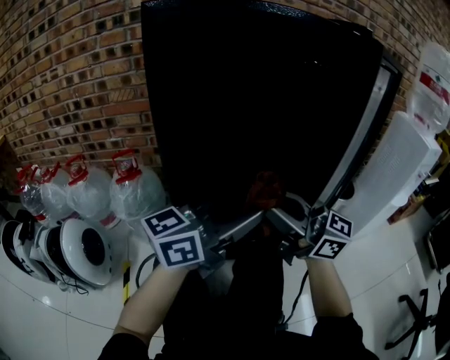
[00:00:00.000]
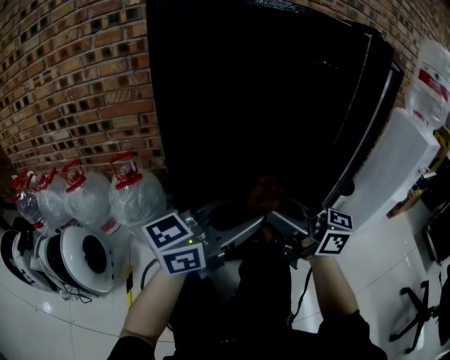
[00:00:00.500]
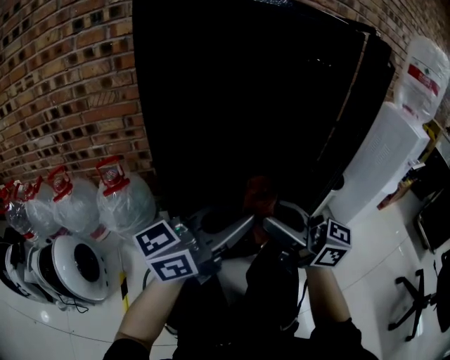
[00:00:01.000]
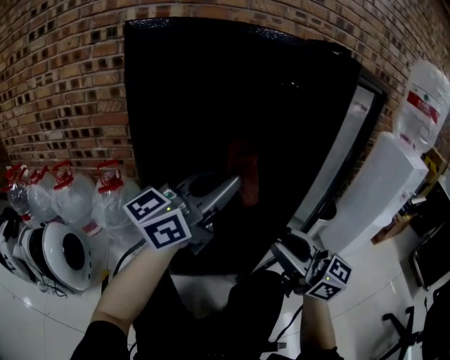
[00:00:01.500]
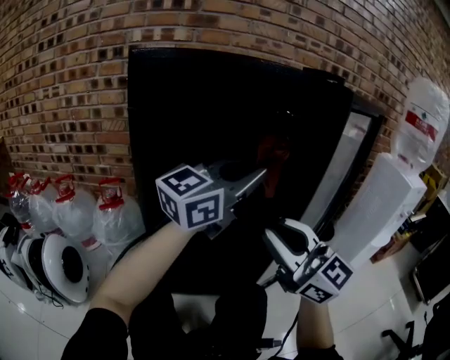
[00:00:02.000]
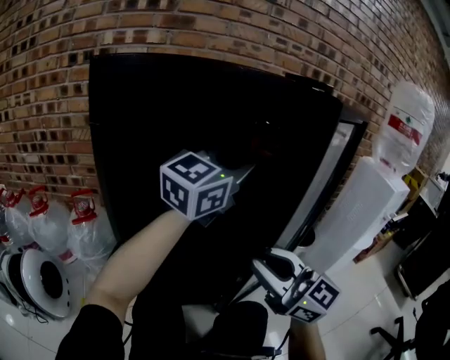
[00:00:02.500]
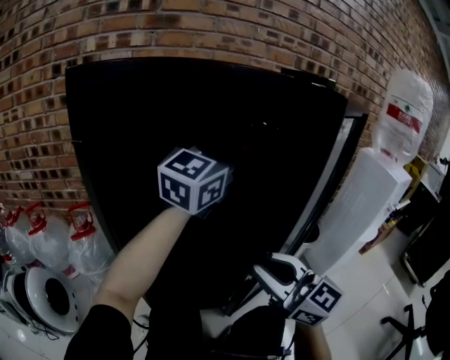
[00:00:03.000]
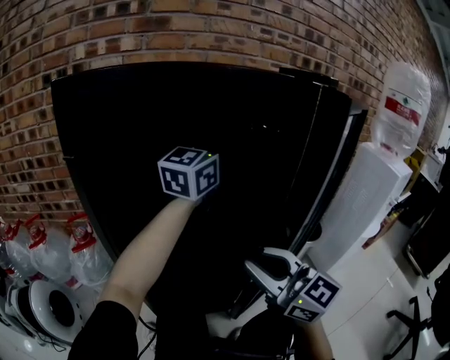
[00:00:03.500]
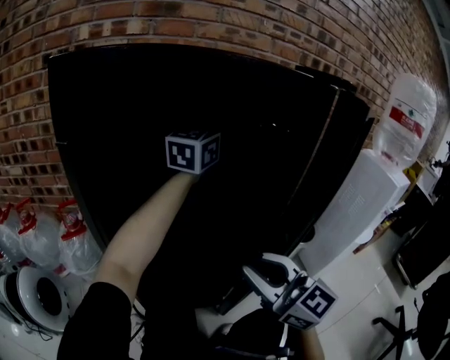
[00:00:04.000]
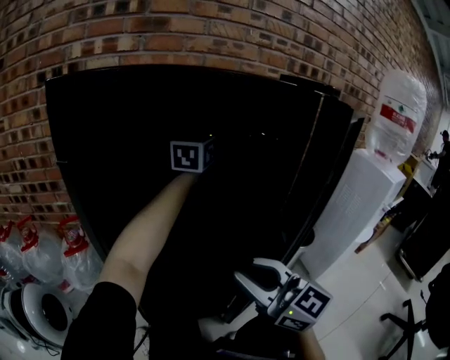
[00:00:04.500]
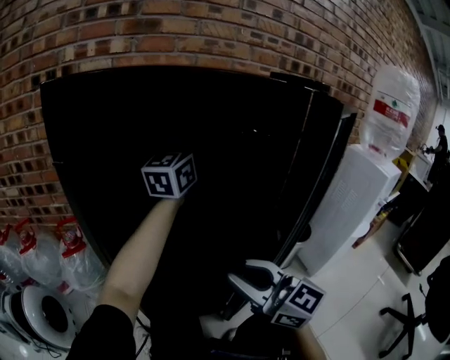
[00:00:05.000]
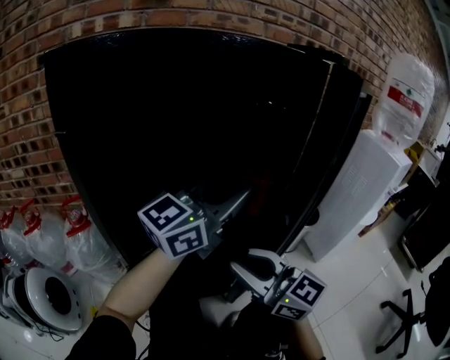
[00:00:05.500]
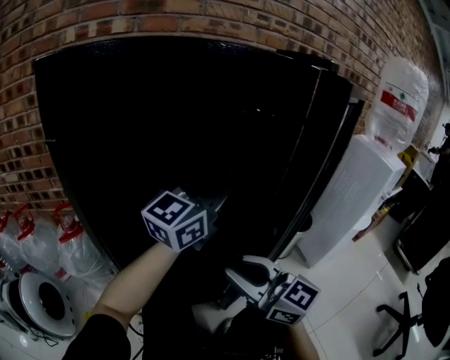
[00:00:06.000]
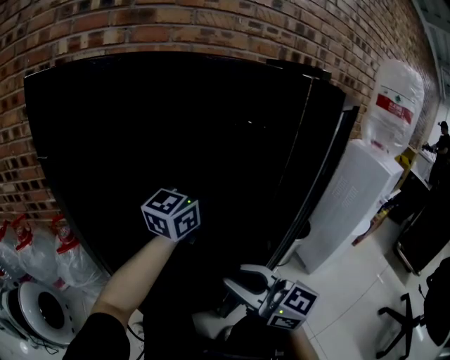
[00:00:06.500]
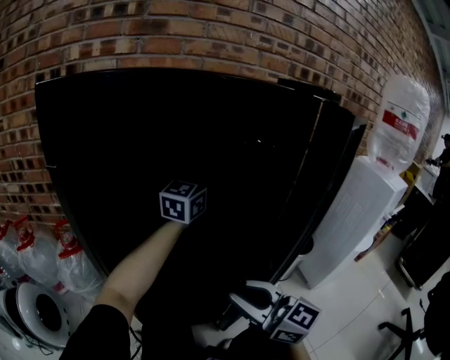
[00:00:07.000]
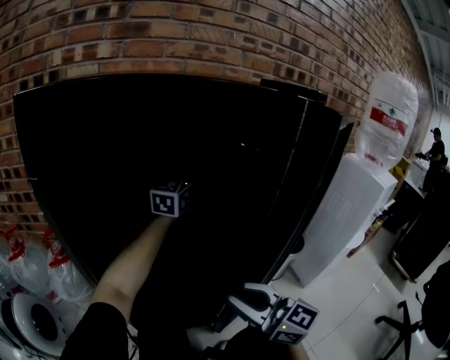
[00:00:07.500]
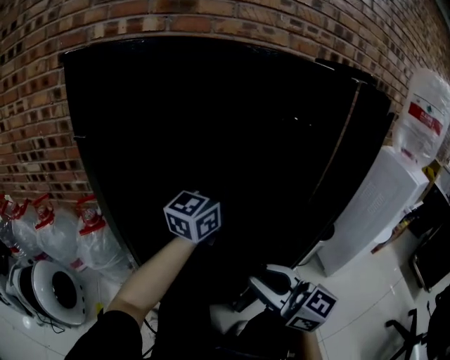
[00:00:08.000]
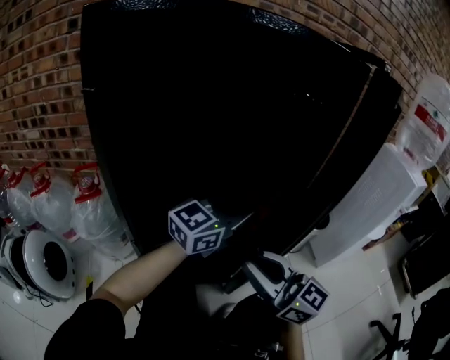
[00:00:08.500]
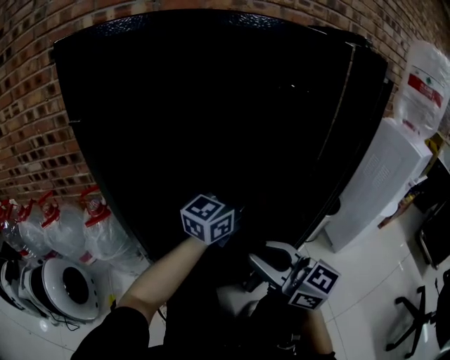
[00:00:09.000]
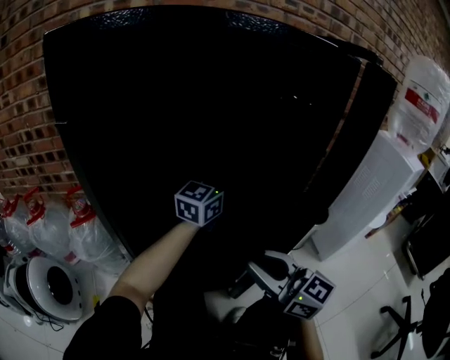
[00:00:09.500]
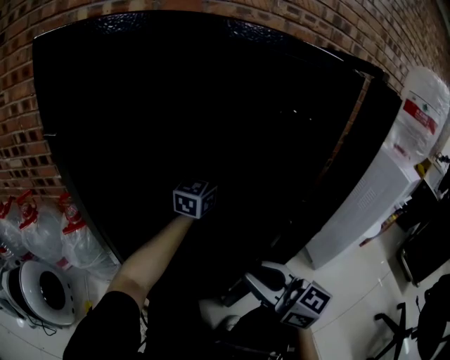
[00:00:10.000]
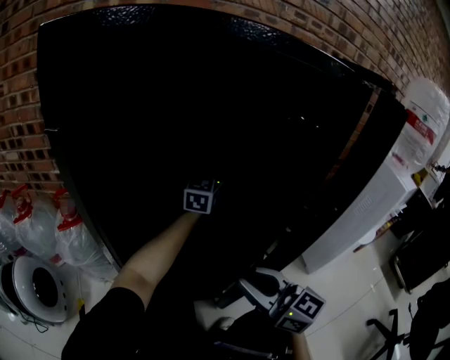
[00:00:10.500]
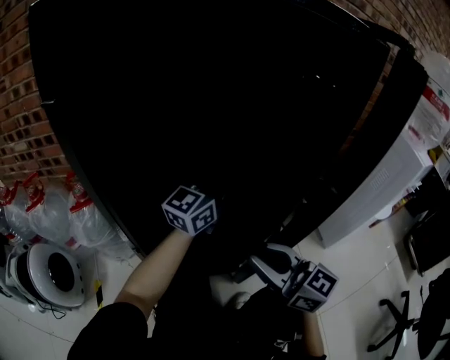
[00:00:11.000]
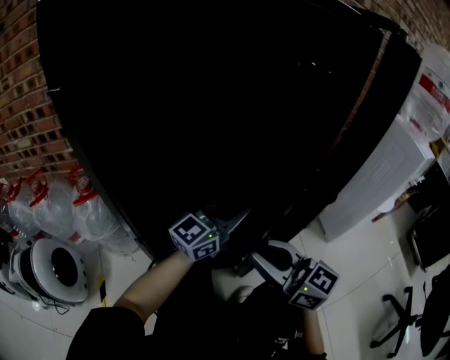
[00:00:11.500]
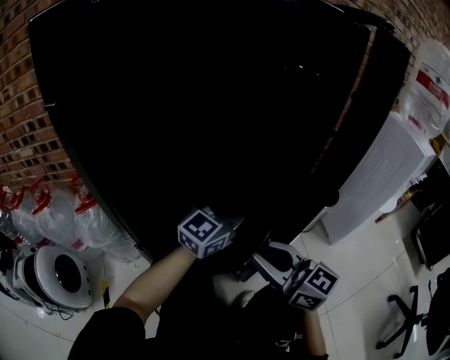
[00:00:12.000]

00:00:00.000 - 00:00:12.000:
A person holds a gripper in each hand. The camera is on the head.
00:00:00.000 - 00:00:02.000: The left gripper travels upward by roughly 15 cm, and changes its angle by about 20 degrees, while the right gripper shifts by some 10 cm, and changes its angle by roughly 30 degrees.
00:00:02.000 - 00:00:04.000: The left gripper heads forward, covering approximately 25 cm. Meanwhile the right gripper moves downward and forward, about 5 cm.
00:00:04.000 - 00:00:06.000: The left gripper moves forward and backward over about 25 cm, changing direction 2 times.
00:00:06.000 - 00:00:08.000: The left gripper moves roughly 20 cm forward and comes back.
00:00:08.000 - 00:00:10.000: The left gripper travels forward and downward by some 15 cm.
00:00:10.000 - 00:00:12.000: The left gripper moves backward, approximately 20 cm, and rotates some 20 degrees.

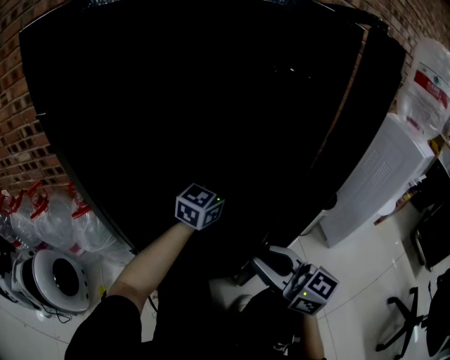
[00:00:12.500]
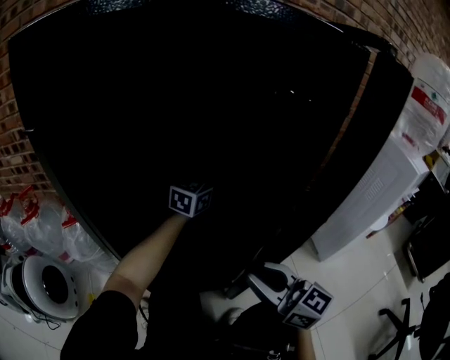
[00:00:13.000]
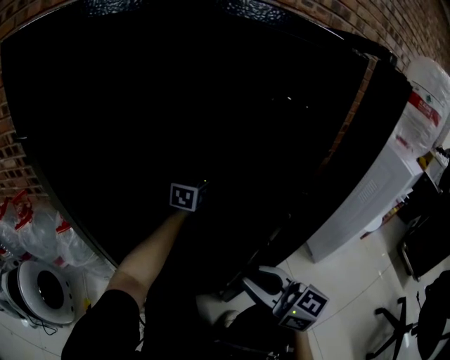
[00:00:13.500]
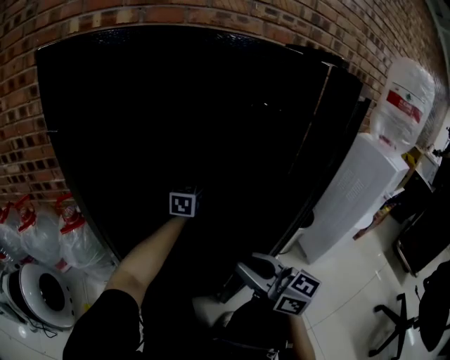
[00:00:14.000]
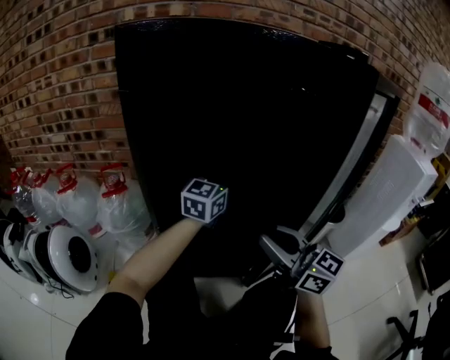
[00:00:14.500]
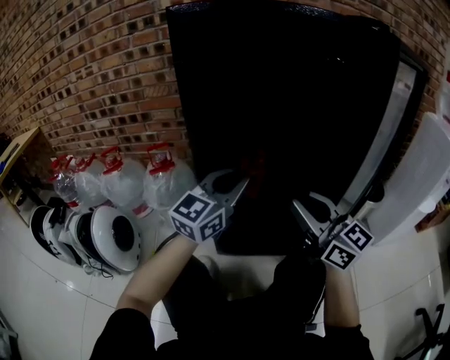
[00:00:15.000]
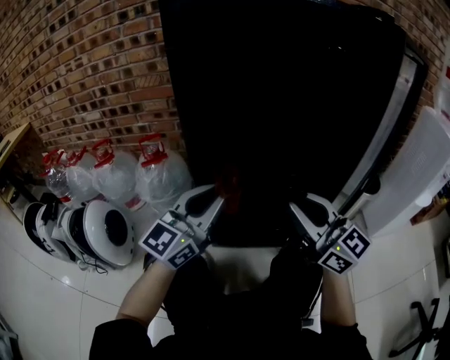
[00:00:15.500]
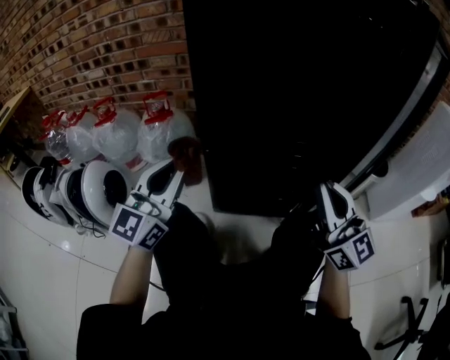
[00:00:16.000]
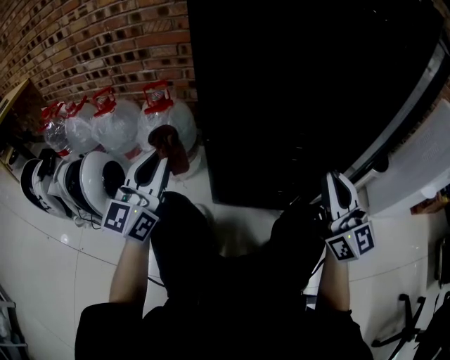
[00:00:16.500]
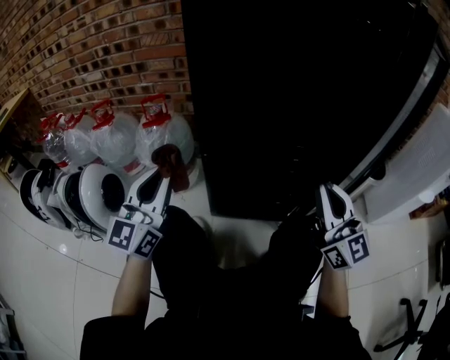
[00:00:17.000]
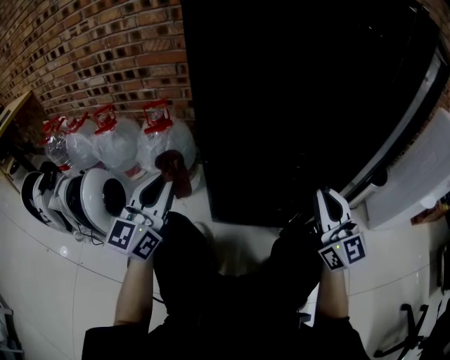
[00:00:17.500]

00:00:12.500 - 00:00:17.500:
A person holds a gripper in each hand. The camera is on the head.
00:00:12.500 - 00:00:15.000: The left gripper is displaced to the left and backward by about 25 cm, while the right gripper travels to the left and upward by some 10 cm.
00:00:15.000 - 00:00:17.500: The right gripper shifts about 10 cm downward and to the right. Meanwhile the left gripper is displaced to the left by about 20 cm, and swivels some 20 degrees.

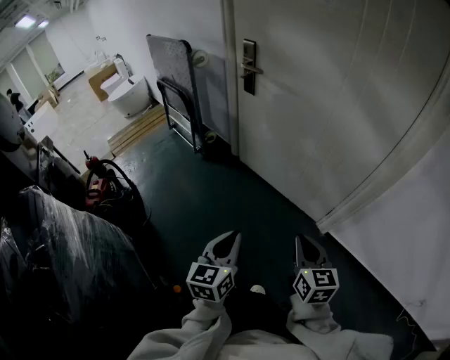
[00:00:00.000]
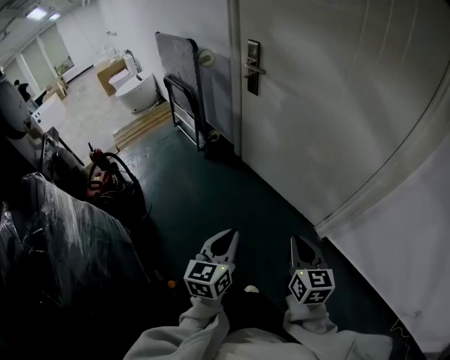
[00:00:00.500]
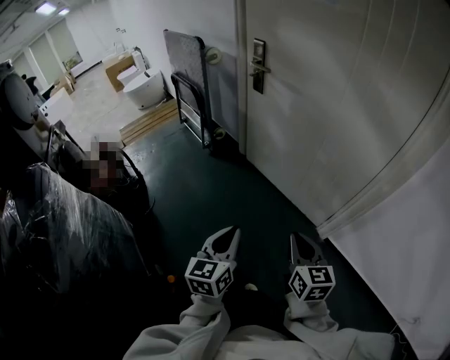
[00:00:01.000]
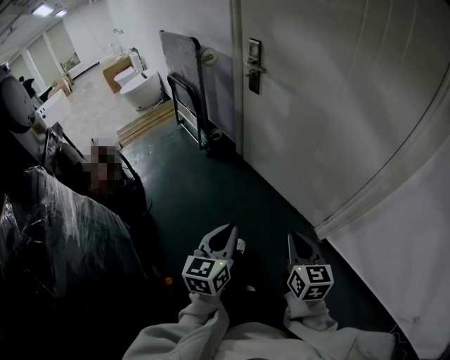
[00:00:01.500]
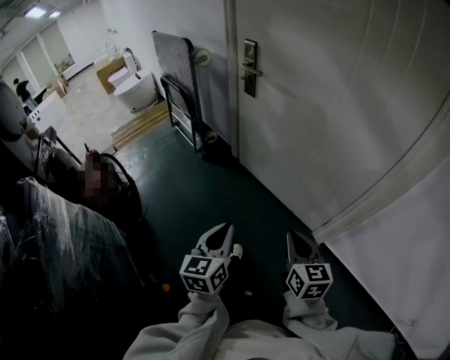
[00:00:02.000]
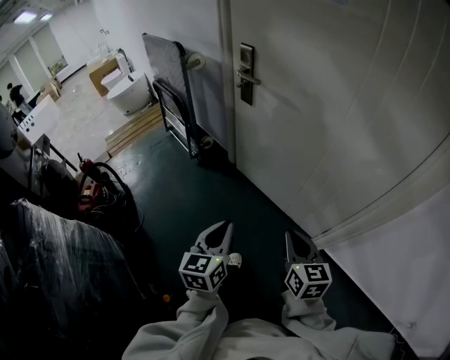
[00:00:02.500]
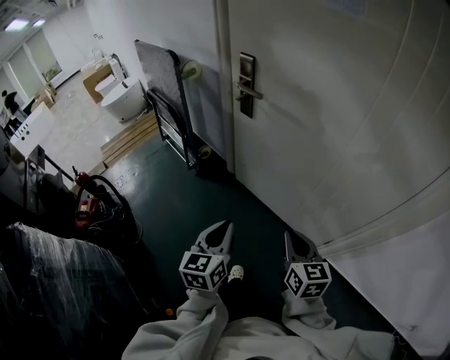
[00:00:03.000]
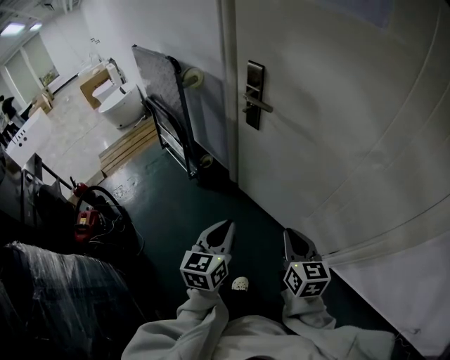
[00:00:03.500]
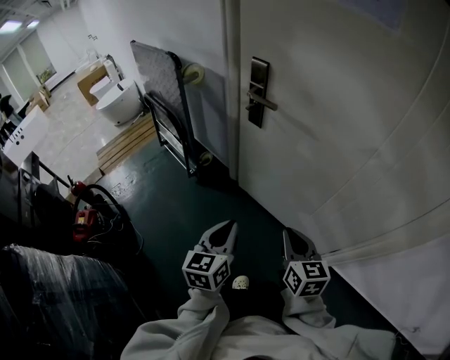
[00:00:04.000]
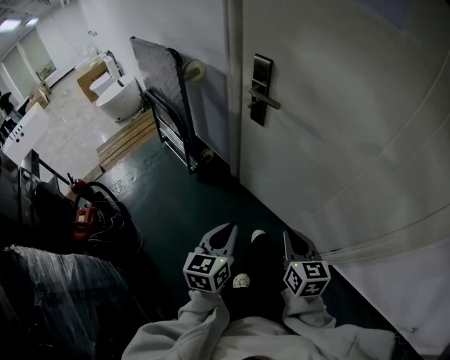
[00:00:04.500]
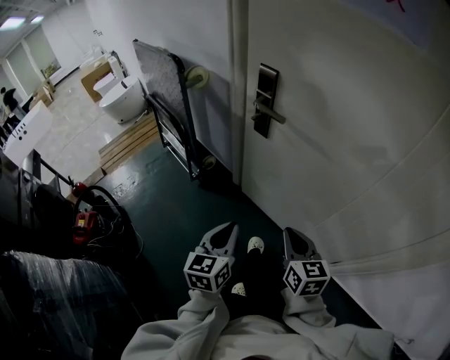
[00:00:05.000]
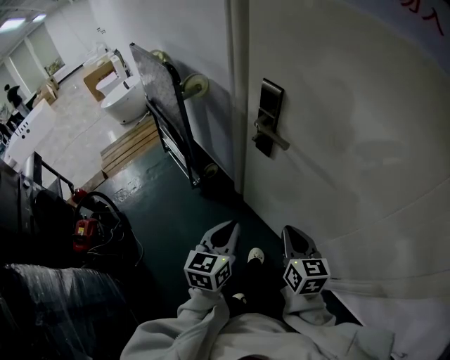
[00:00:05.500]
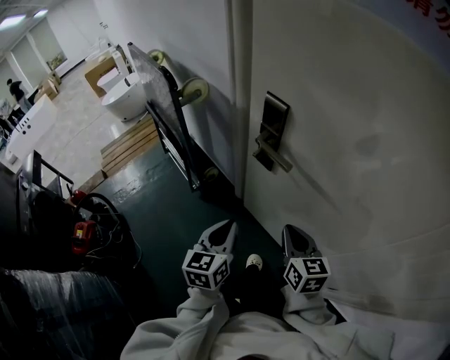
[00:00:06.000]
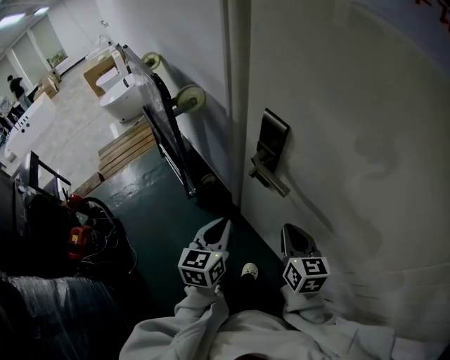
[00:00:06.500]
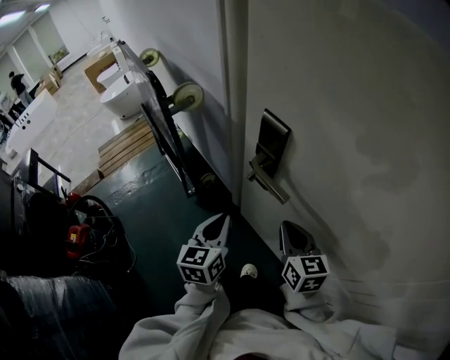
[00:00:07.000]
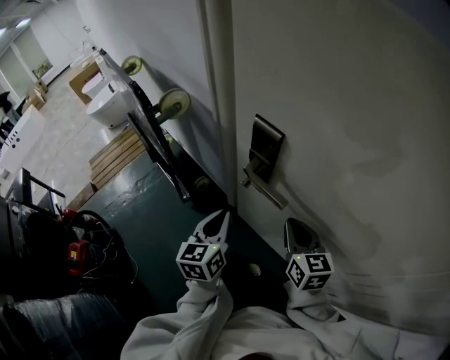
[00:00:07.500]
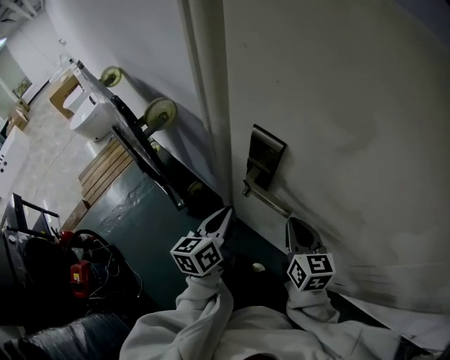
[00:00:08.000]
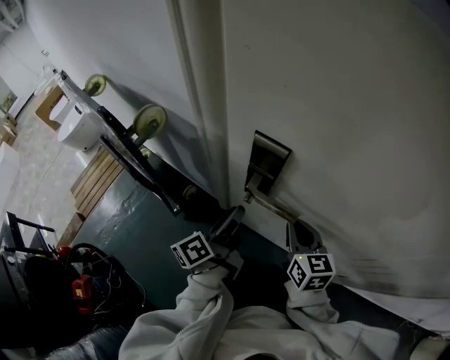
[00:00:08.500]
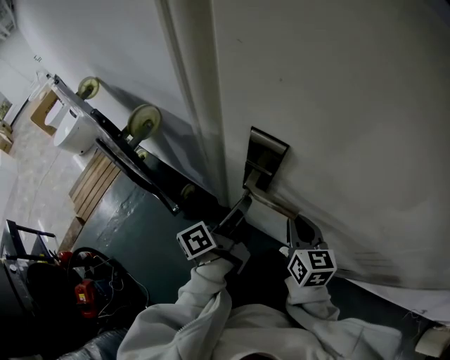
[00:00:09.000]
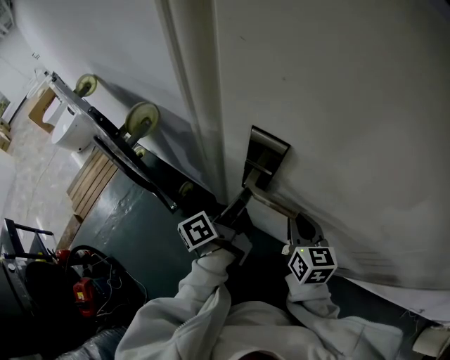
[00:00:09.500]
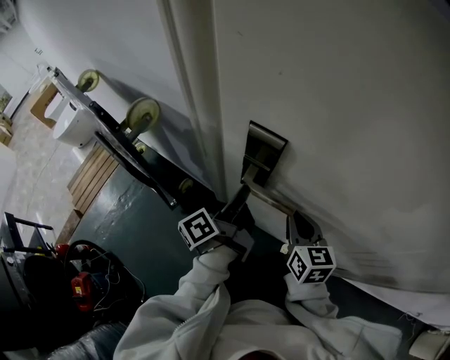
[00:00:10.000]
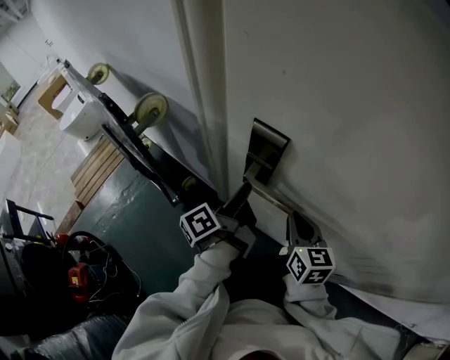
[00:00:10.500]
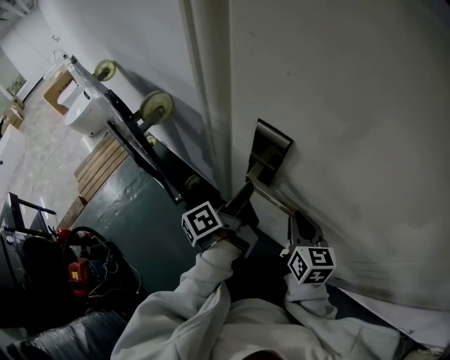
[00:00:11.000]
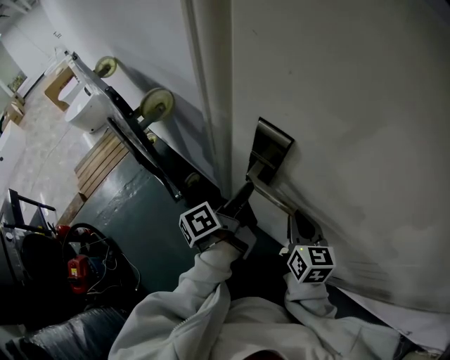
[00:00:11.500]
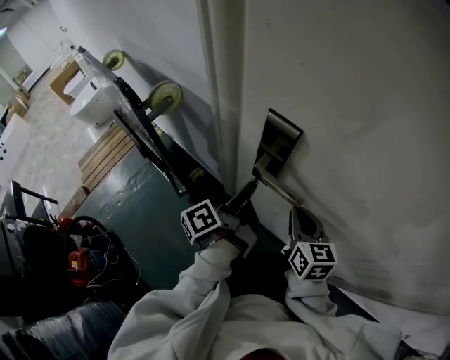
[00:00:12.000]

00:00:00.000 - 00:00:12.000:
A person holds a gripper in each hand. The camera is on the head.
00:00:00.000 - 00:00:02.000: The grippers both shift forward by about 5 cm.
00:00:02.000 - 00:00:04.000: The right gripper is displaced forward and to the left by approximately 25 cm. Meanwhile the left gripper shifts about 25 cm forward.
00:00:04.000 - 00:00:06.000: Both grippers travel together forward, about 25 cm.
00:00:06.000 - 00:00:08.000: The grippers both shift forward by approximately 15 cm. The left gripper turns by roughly 20 degrees.
00:00:08.000 - 00:00:10.000: The left gripper goes about 5 cm forward, rolls counterclockwise, seen from behind, by about 40 degrees, and opens and closes again.
00:00:10.000 - 00:00:12.000: The grippers move only a little.
